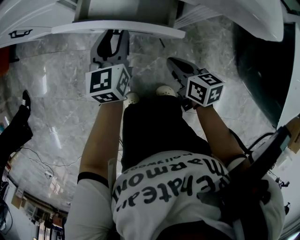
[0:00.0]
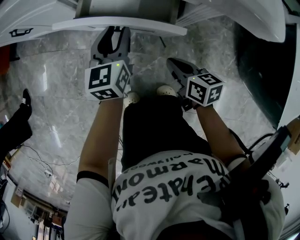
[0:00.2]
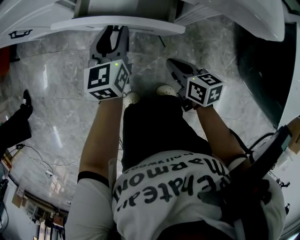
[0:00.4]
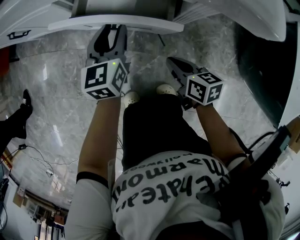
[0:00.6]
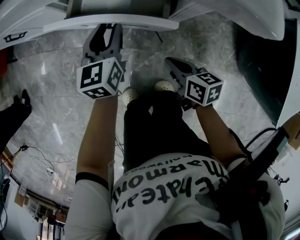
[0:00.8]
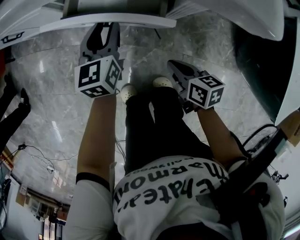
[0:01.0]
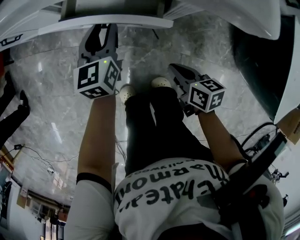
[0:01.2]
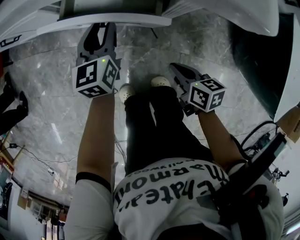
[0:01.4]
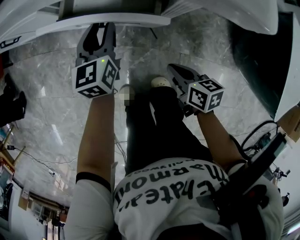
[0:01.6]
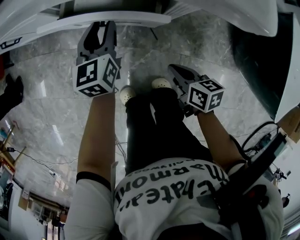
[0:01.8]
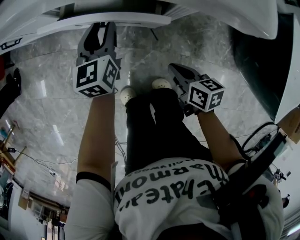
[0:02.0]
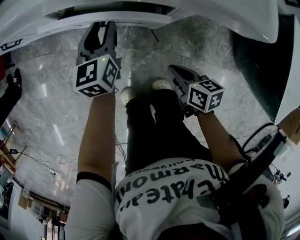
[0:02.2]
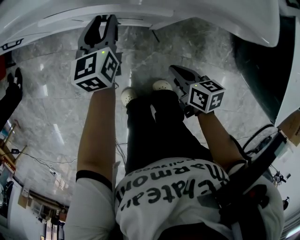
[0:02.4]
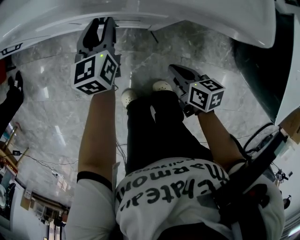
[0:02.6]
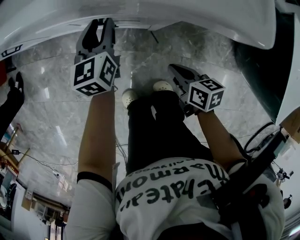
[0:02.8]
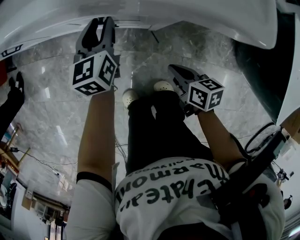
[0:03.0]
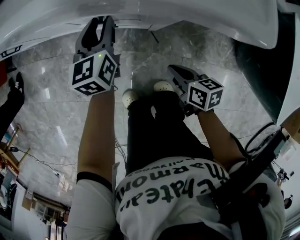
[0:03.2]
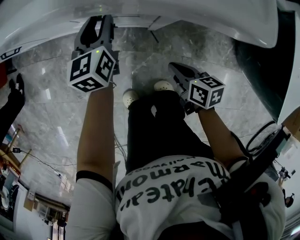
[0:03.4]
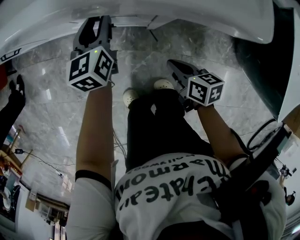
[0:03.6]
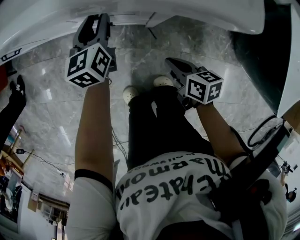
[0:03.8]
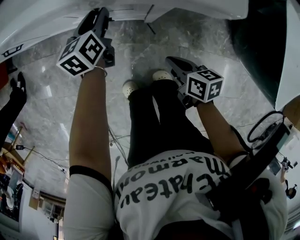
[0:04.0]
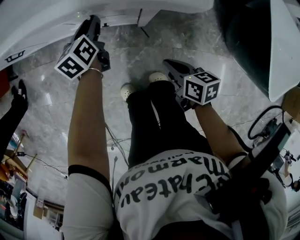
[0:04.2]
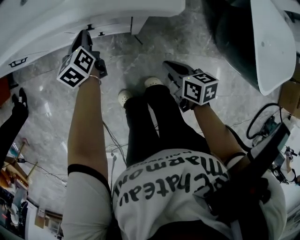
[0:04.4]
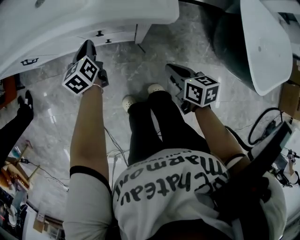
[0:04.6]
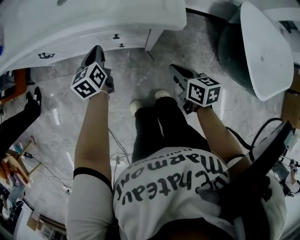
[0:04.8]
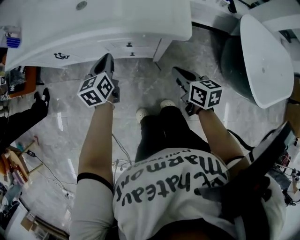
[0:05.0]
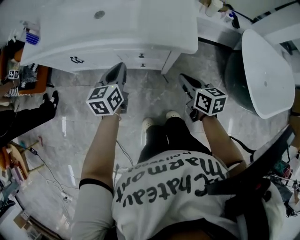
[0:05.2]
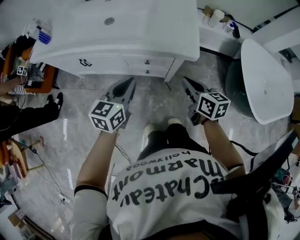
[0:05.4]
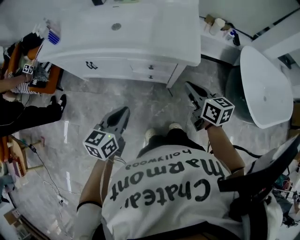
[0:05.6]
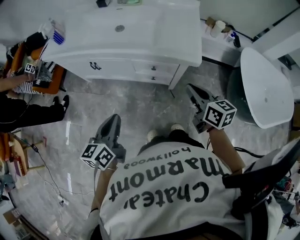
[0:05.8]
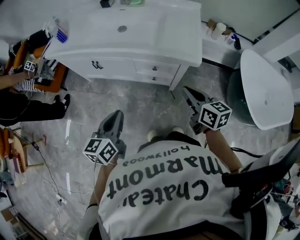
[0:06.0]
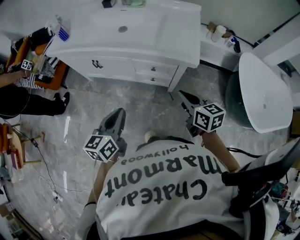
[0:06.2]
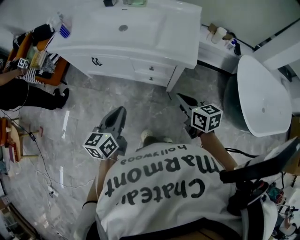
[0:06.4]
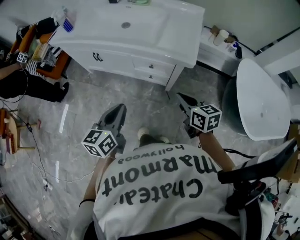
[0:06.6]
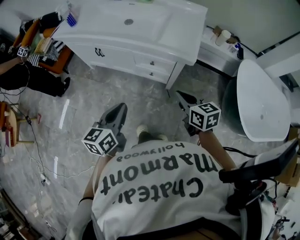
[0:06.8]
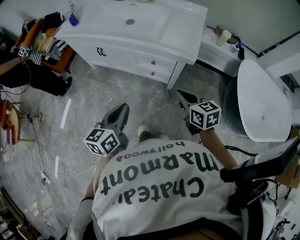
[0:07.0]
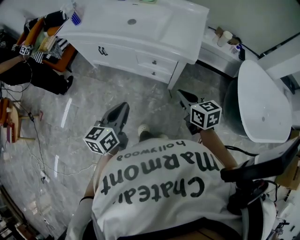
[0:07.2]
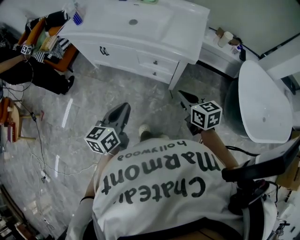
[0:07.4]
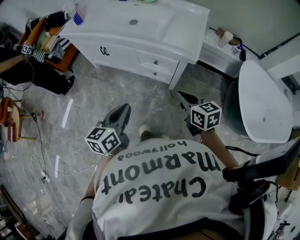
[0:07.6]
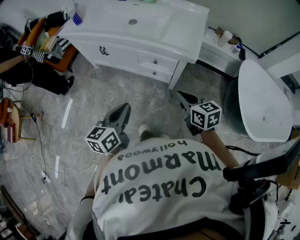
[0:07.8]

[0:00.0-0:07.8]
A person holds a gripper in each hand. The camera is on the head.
0:00.0 to 0:01.6: The right gripper is displaced backward by some 5 cm.
0:01.6 to 0:03.2: The grippers make only small movements.
0:03.2 to 0:04.6: The right gripper travels upward by about 15 cm; the left gripper heads upward, covering roughly 5 cm, and closes up.
0:04.6 to 0:06.2: The right gripper goes some 25 cm upward and to the left, and rotates approximately 20 degrees, while the left gripper goes some 35 cm backward and upward.
0:06.2 to 0:07.8: The grippers both shift backward by roughly 5 cm.

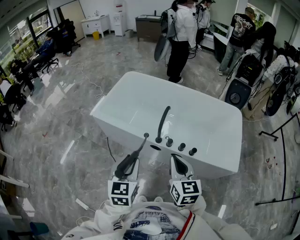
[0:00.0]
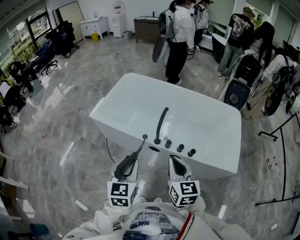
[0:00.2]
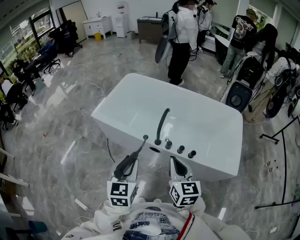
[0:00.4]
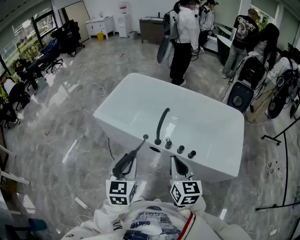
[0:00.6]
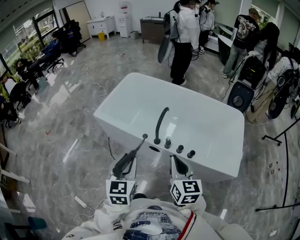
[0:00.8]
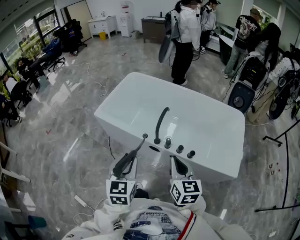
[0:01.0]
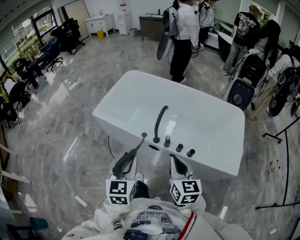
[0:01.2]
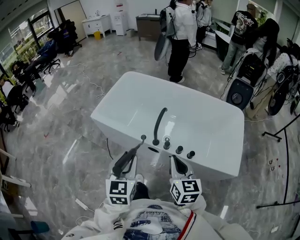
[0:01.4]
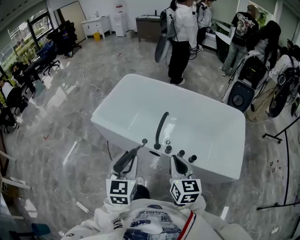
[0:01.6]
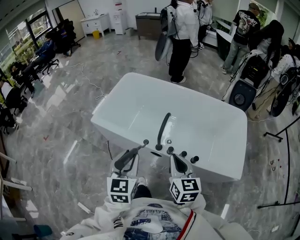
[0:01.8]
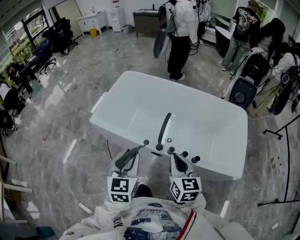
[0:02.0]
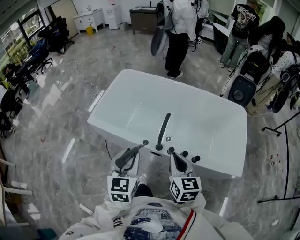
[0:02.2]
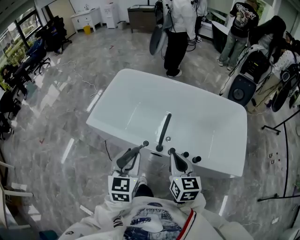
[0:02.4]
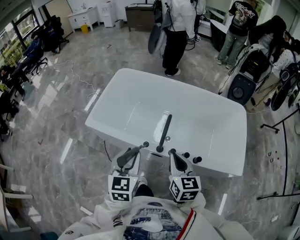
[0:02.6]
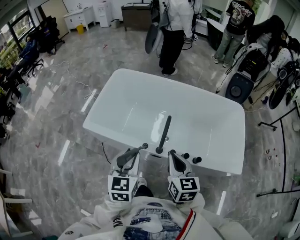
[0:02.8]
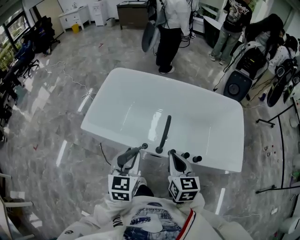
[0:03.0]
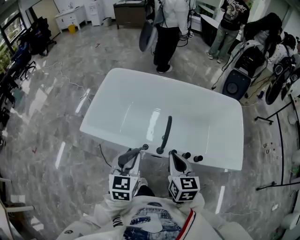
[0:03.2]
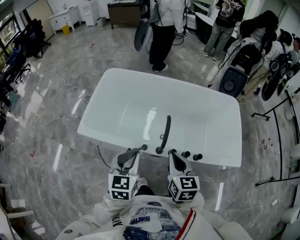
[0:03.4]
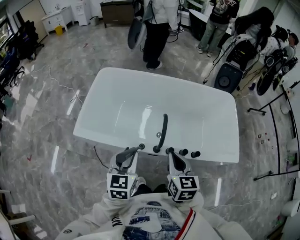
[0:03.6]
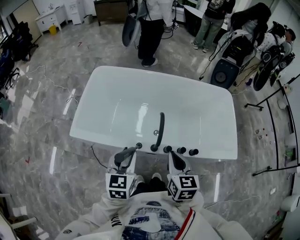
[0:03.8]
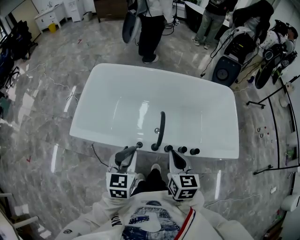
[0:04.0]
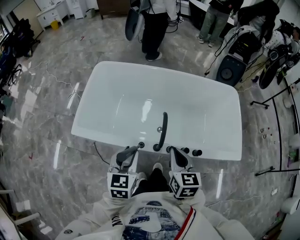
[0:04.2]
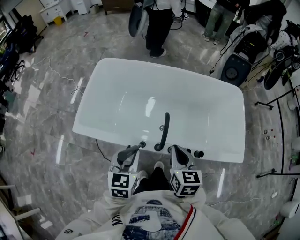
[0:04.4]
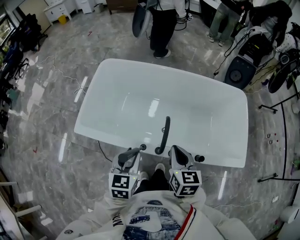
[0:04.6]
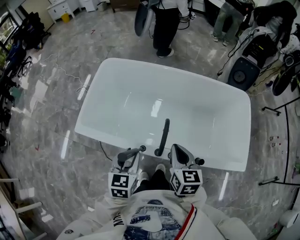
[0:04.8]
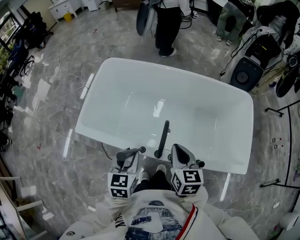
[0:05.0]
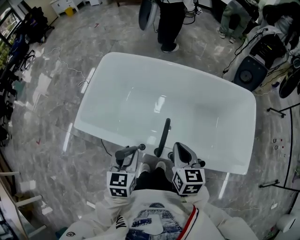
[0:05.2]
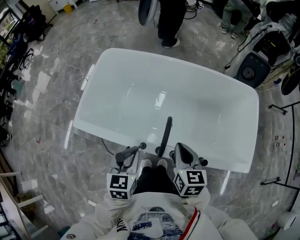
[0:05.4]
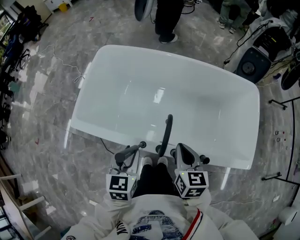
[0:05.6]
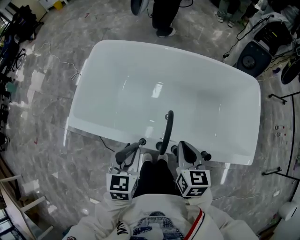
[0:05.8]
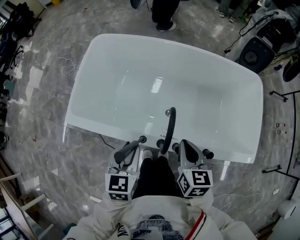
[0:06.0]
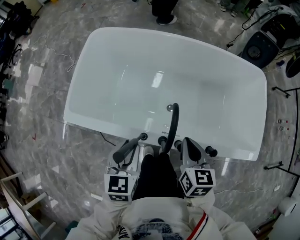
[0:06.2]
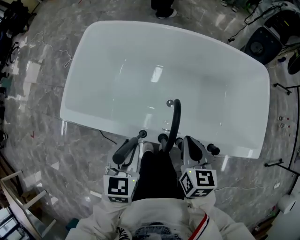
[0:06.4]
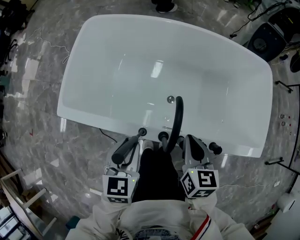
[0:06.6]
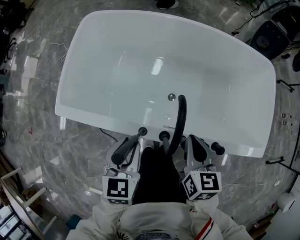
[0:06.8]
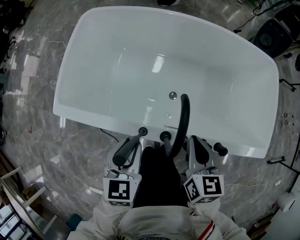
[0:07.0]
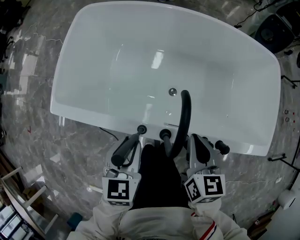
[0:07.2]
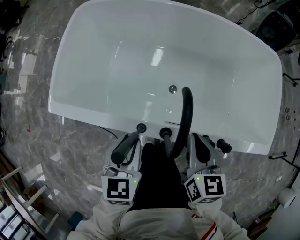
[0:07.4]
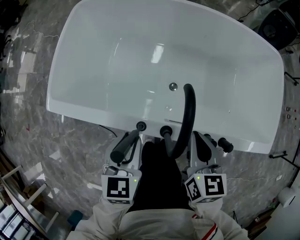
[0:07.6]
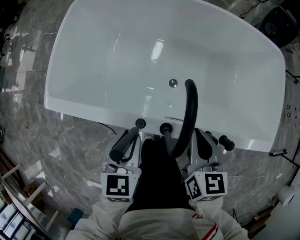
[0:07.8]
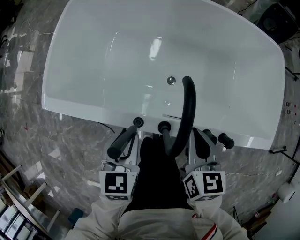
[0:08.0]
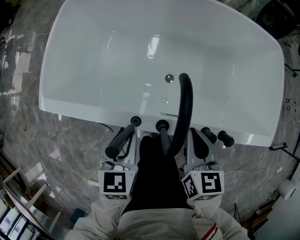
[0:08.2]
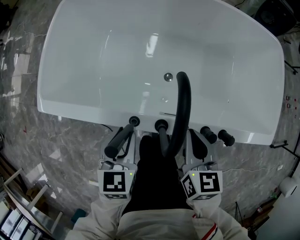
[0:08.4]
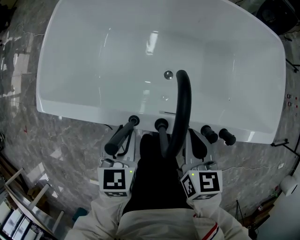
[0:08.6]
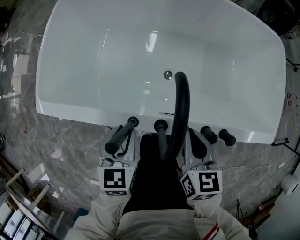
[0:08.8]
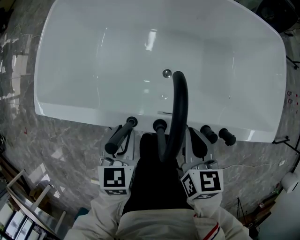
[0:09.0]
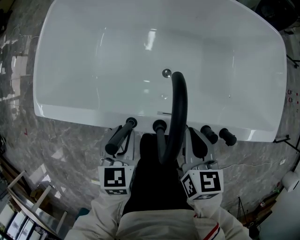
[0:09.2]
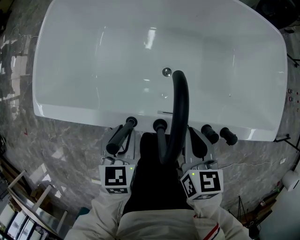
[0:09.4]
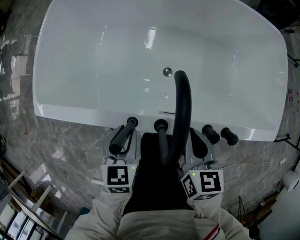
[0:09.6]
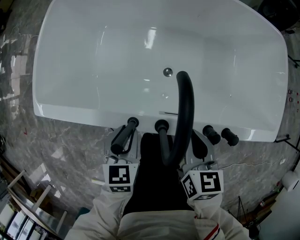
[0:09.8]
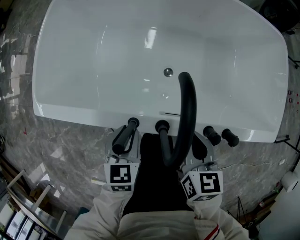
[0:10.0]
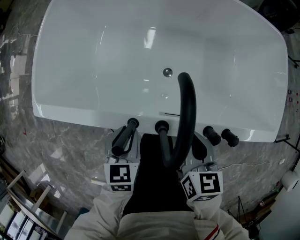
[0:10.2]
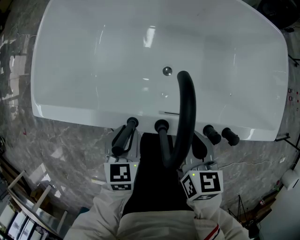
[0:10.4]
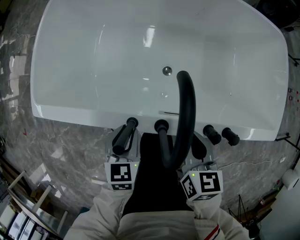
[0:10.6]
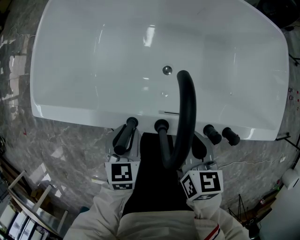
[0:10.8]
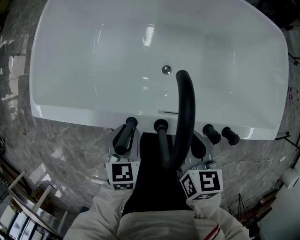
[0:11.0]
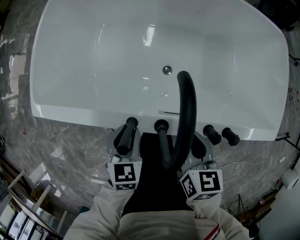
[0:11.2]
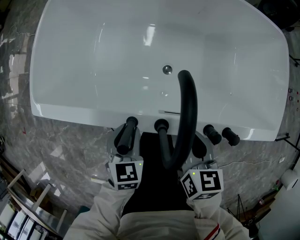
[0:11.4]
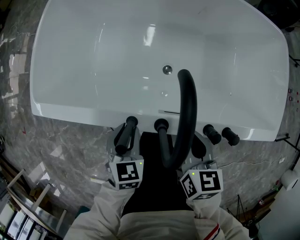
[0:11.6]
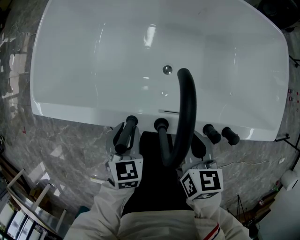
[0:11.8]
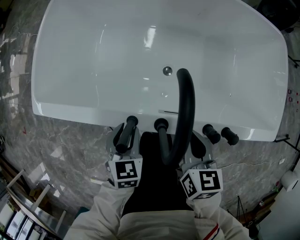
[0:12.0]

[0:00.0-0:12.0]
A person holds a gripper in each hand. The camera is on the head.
0:00.0 to 0:01.6: The two grippers go approximately 5 cm forward.
0:01.6 to 0:03.0: The right gripper goes approximately 10 cm forward and to the left, while the left gripper heads forward and downward, covering approximately 15 cm.
0:03.0 to 0:04.4: The left gripper shifts about 10 cm forward and downward, while the right gripper is displaced forward by some 5 cm.
0:04.4 to 0:06.0: Both grippers travel together downward and forward, approximately 10 cm.
0:06.0 to 0:07.6: The two grippers go approximately 10 cm downward.
0:07.6 to 0:09.0: Both grippers move downward, approximately 5 cm.
0:09.0 to 0:12.0: The grippers stay close to where they were, moving slightly.

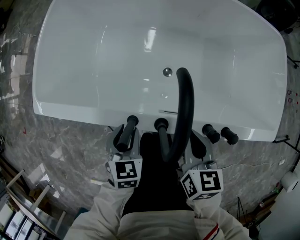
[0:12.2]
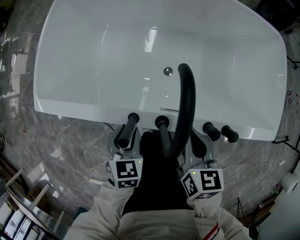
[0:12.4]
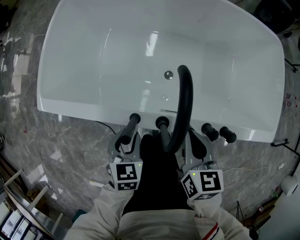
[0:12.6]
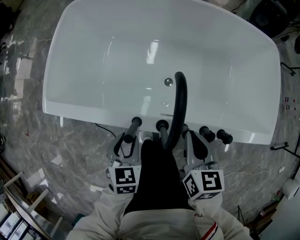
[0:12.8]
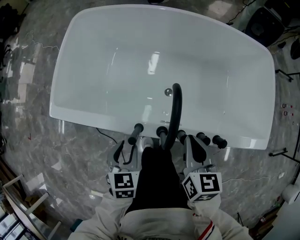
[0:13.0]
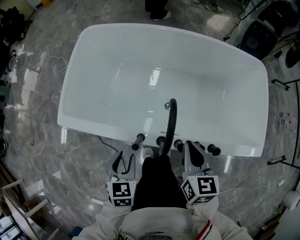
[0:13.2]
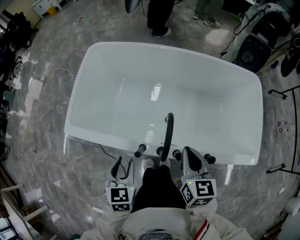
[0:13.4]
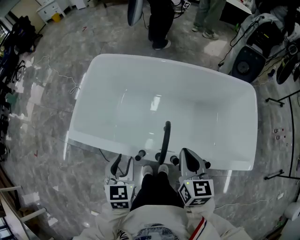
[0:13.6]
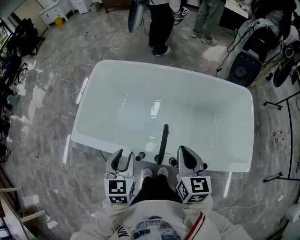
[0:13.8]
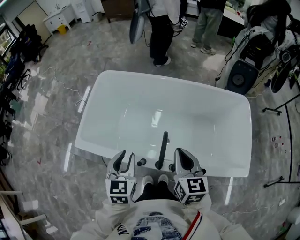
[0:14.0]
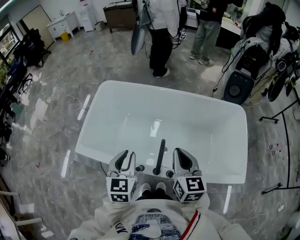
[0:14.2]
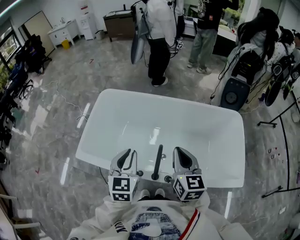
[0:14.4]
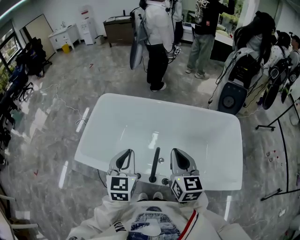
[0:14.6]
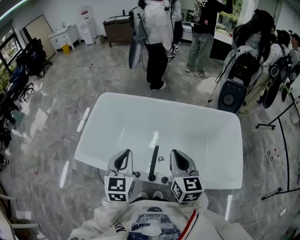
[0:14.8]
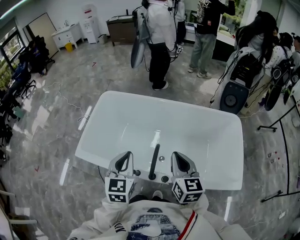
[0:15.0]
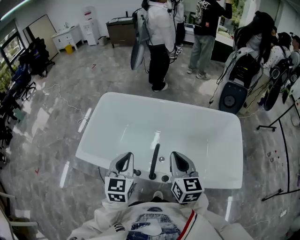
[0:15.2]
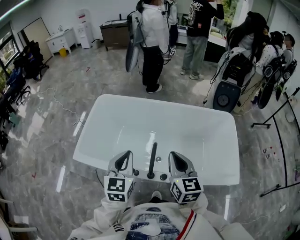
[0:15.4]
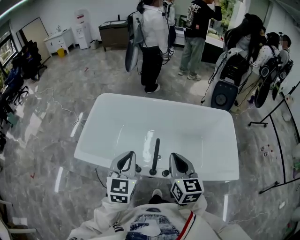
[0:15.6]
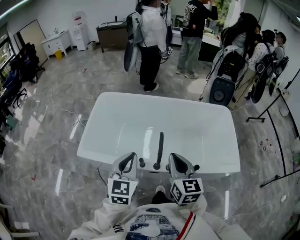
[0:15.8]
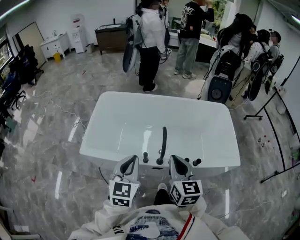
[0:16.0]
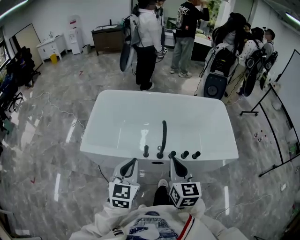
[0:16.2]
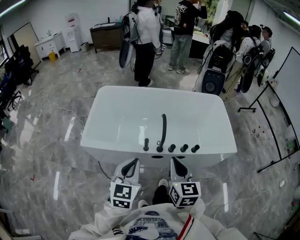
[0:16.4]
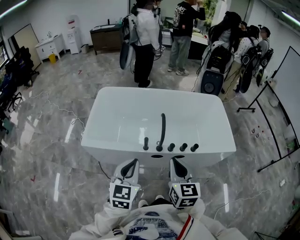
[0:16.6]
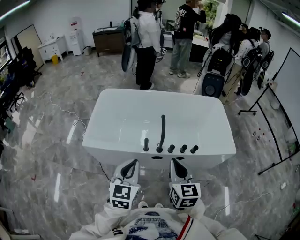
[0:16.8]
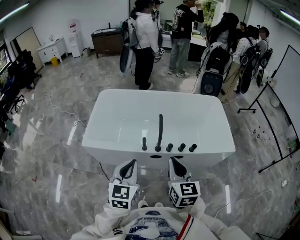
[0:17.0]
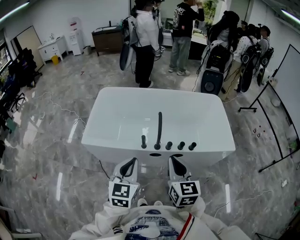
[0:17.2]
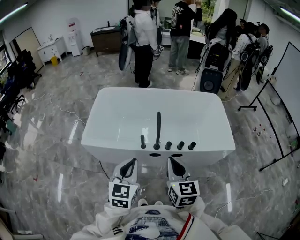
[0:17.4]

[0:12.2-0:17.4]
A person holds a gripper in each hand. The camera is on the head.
0:12.2 to 0:14.0: Both grippers travel together upward, about 30 cm. The right gripper rotates roughly 20 degrees. The left gripper rotates approximately 20 degrees.
0:14.0 to 0:15.6: The right gripper travels upward and backward by some 10 cm. Meanwhile the left gripper is displaced upward by some 10 cm, and closes.
0:15.6 to 0:17.4: The two grippers go some 25 cm backward.
